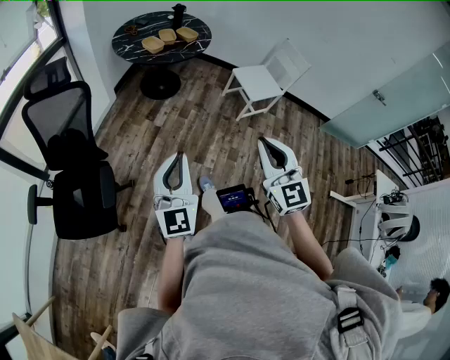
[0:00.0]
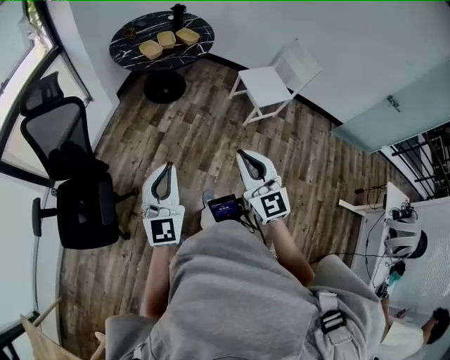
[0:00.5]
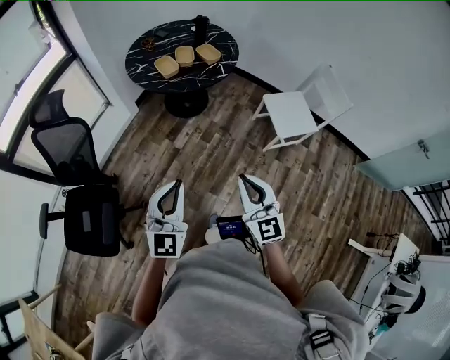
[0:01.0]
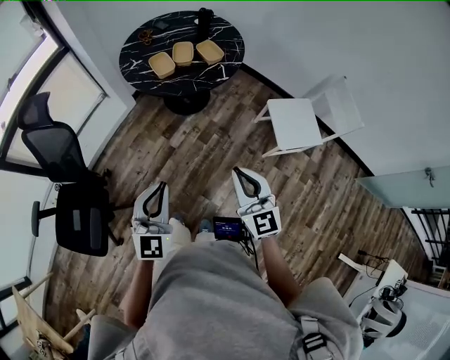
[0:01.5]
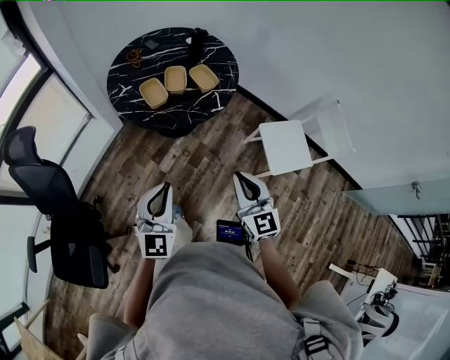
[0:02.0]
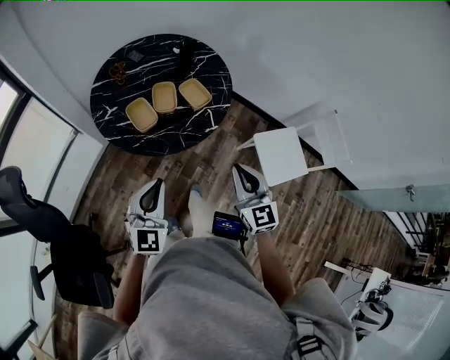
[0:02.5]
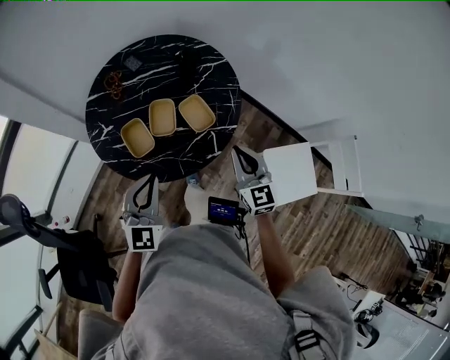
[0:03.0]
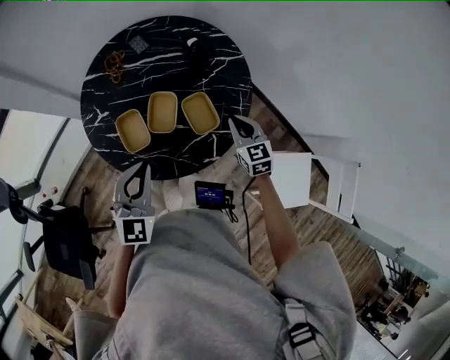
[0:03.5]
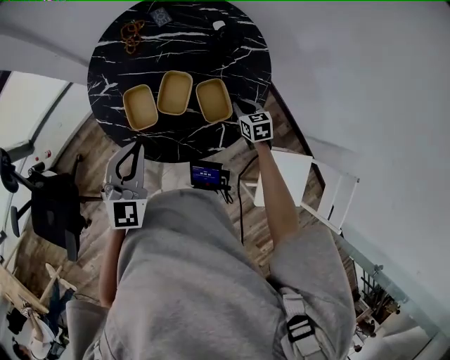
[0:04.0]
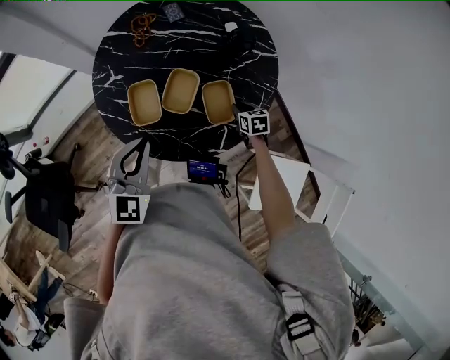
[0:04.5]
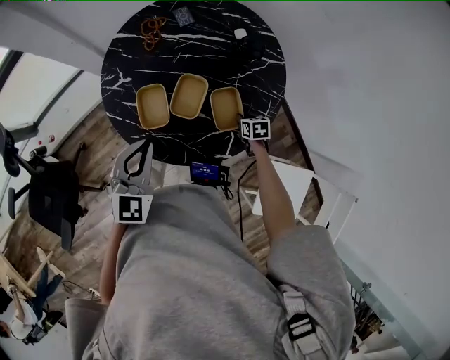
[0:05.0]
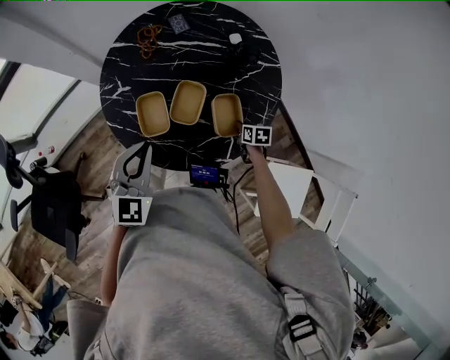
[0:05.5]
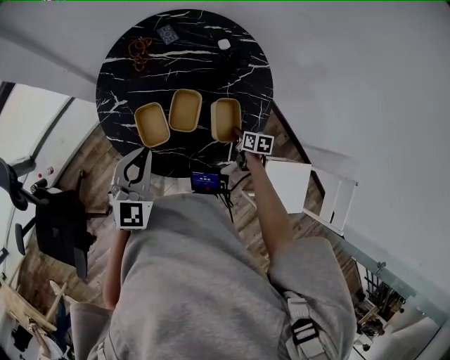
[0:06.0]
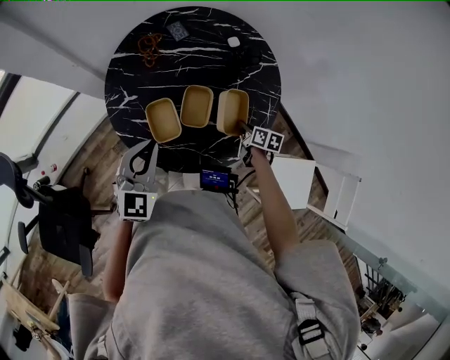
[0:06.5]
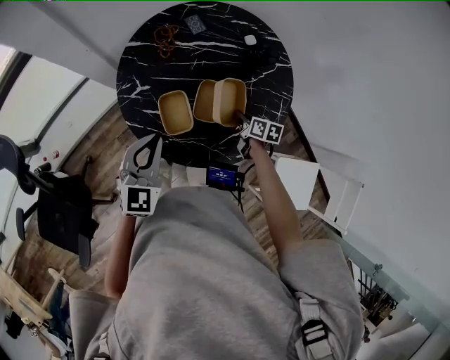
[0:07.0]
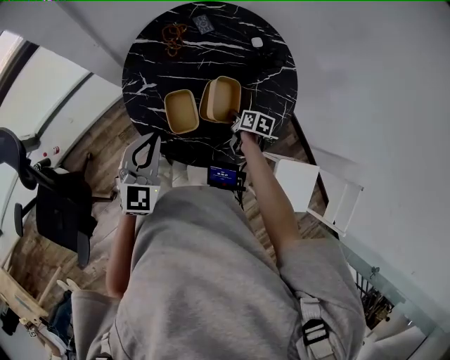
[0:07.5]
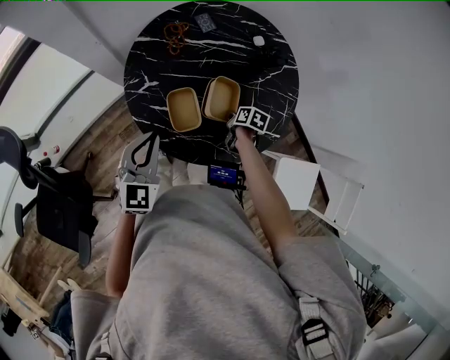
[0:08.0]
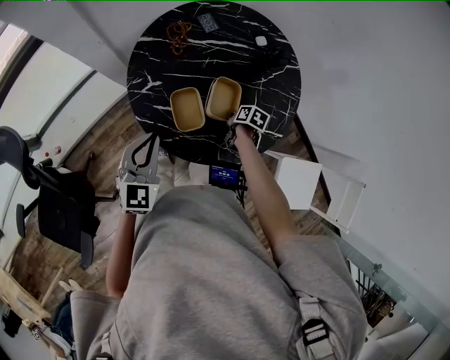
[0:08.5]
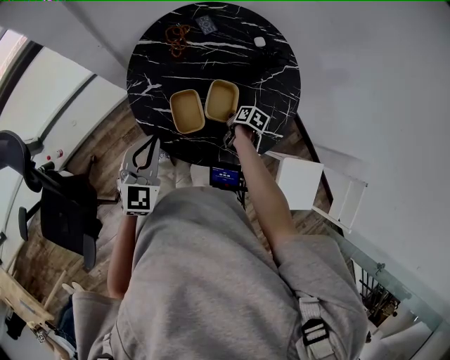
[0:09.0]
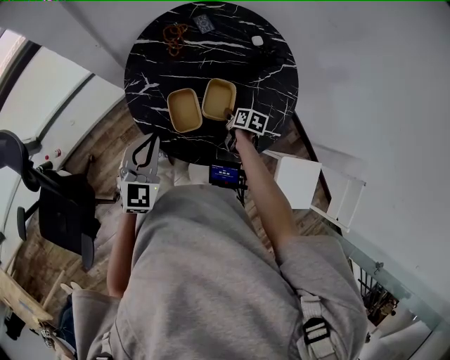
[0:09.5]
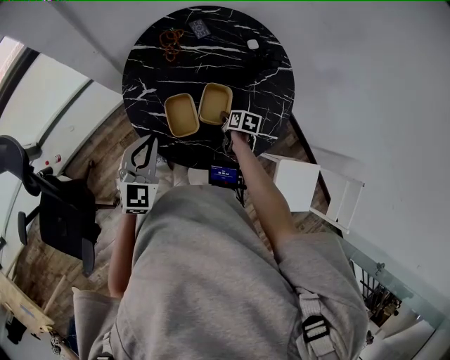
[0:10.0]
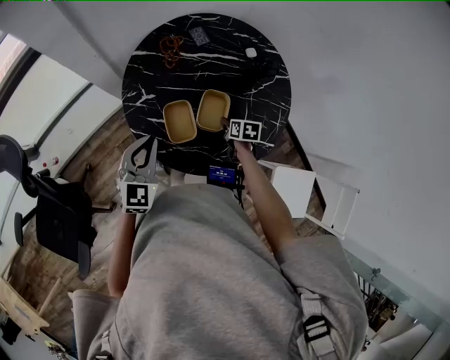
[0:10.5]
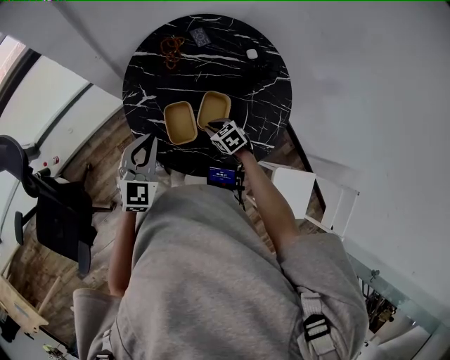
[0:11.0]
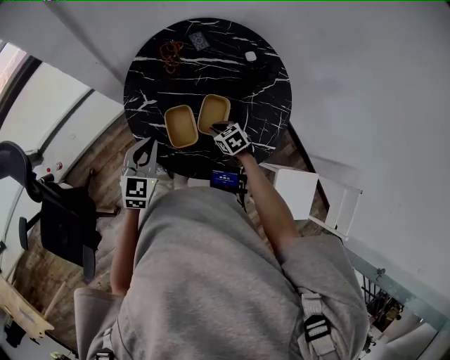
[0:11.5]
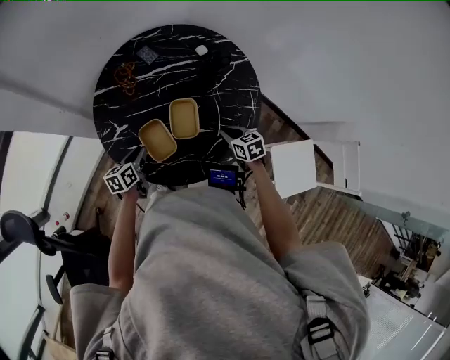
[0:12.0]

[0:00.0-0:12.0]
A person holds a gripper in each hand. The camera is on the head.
0:00.0 to 0:02.0: The pair of grippers is taken forward, some 50 cm.
0:02.0 to 0:04.0: The two grippers travel together, forward, some 50 cm. The left gripper rotates about 20 degrees. Meanwhile the right gripper heads downward, covering about 30 cm, and tilts its fingers approximately 40 degrees downward.
0:04.0 to 0:06.0: The left gripper changes place by roughly 5 cm, while the right gripper is displaced downward by some 5 cm, and rotates about 30 degrees.
0:06.0 to 0:08.0: The grippers both shift to the left by approximately 10 cm.
0:08.0 to 0:10.0: The right gripper opens its fingers.
0:10.0 to 0:12.0: The right gripper moves some 10 cm, and turns by approximately 30 degrees. The left gripper travels downward by about 20 cm, and twists some 40 degrees counterclockwise, seen from behind.

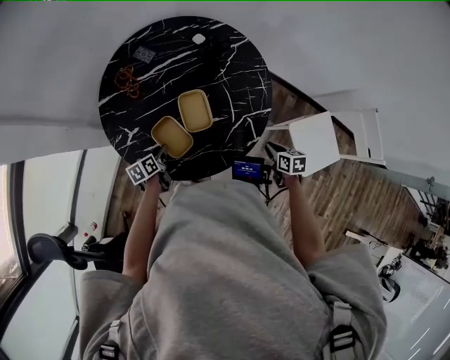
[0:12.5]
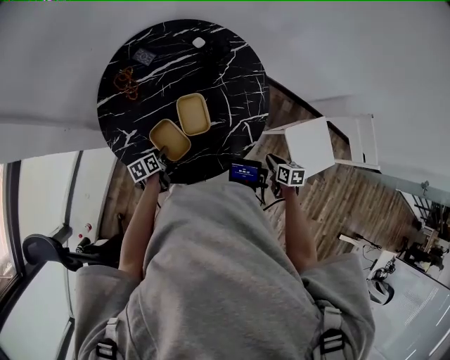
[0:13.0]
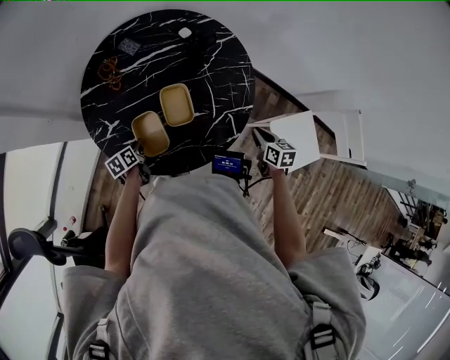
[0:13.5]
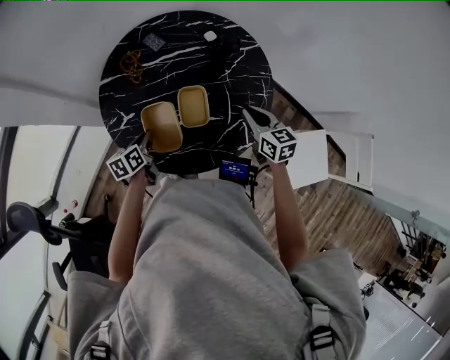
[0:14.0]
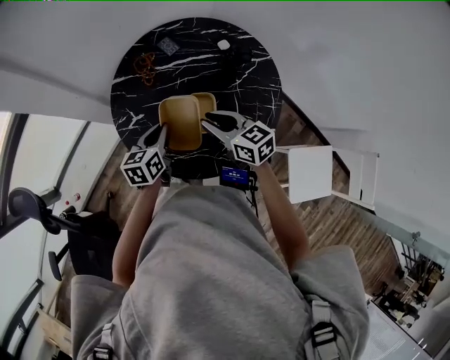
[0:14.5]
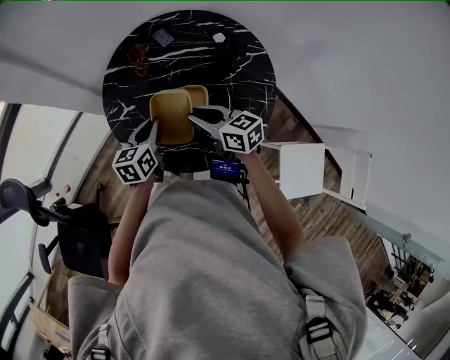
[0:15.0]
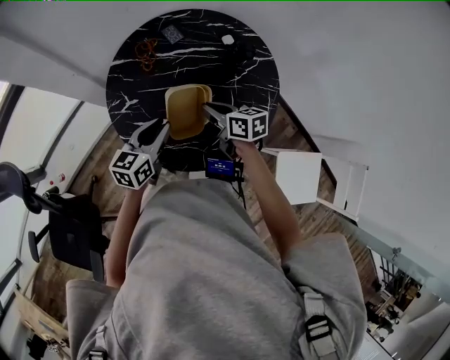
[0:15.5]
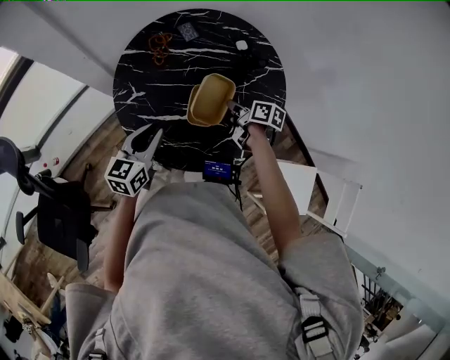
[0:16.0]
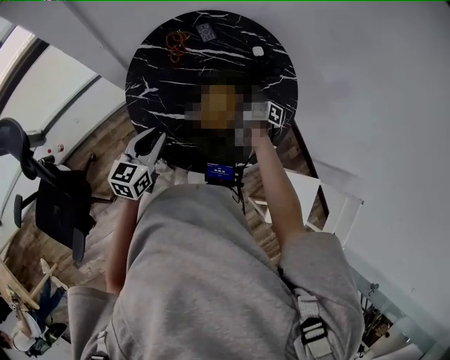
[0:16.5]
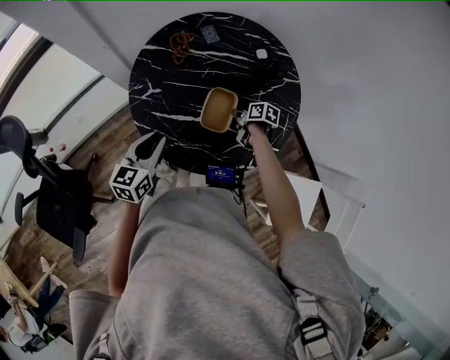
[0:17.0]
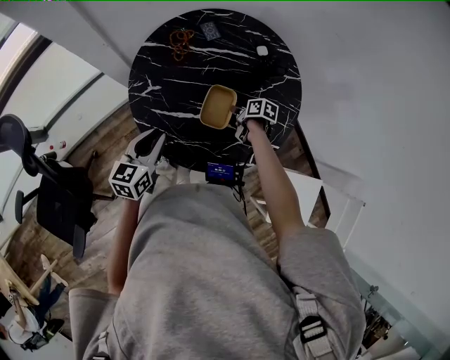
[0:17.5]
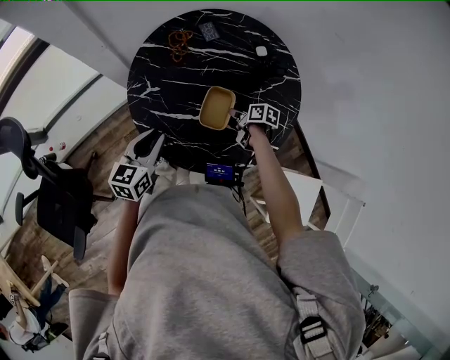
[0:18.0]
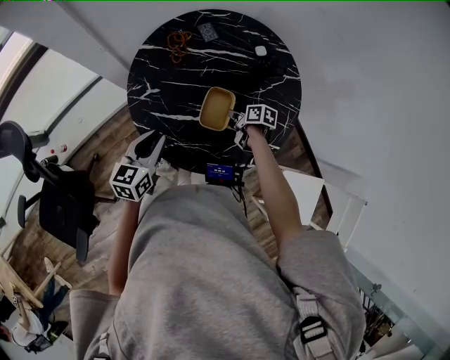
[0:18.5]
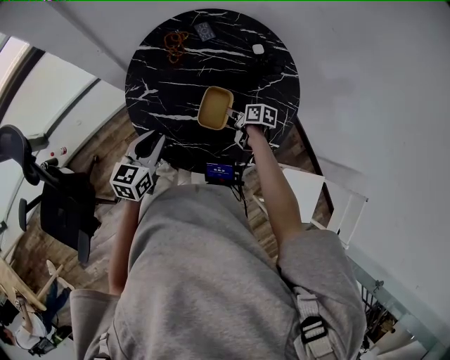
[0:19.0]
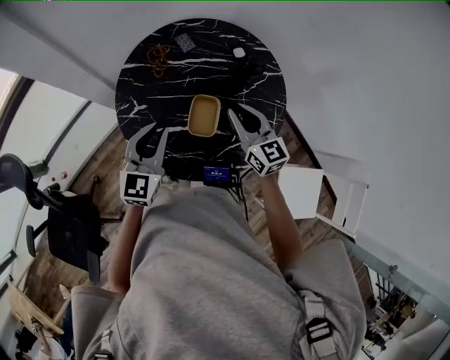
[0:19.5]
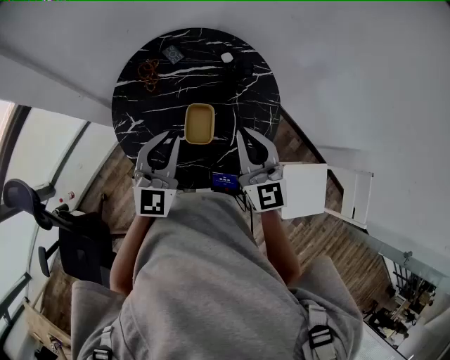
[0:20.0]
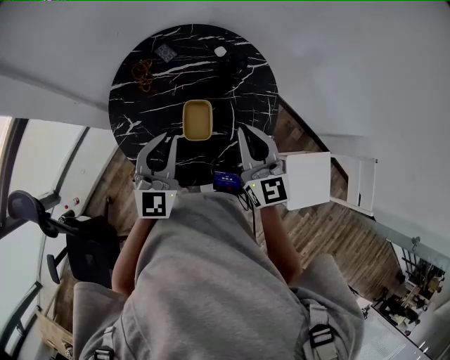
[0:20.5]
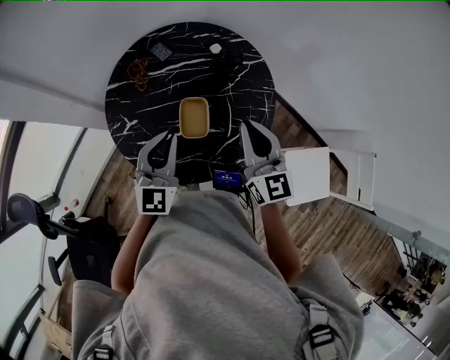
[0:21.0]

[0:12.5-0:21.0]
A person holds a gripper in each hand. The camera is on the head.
0:12.5 to 0:14.5: The left gripper shifts about 20 cm upward, changes its angle by about 30 degrees, and closes its fingers. The right gripper ends up some 35 cm from where it was, and tips its fingers upward by approximately 30 degrees.
0:14.5 to 0:16.5: The left gripper travels backward and to the left by roughly 10 cm; the right gripper goes roughly 25 cm downward and to the right, and rotates around the line of its fingers by some 40 degrees, clockwise from behind.
0:16.5 to 0:19.0: There are only small adjustments of the grippers.
0:19.0 to 0:21.0: The right gripper moves upward, about 35 cm, and angles its fingers upward, by some 40 degrees; the left gripper goes some 15 cm upward, and rotates some 40 degrees.

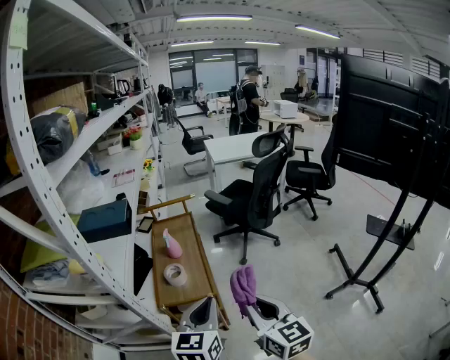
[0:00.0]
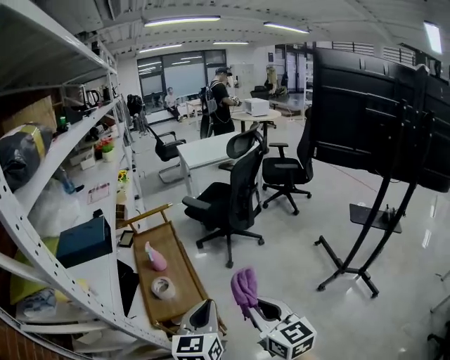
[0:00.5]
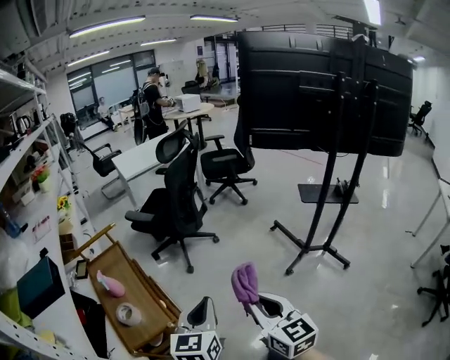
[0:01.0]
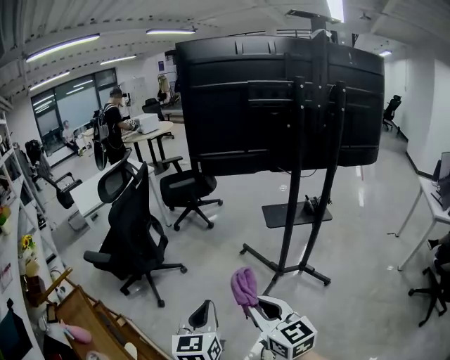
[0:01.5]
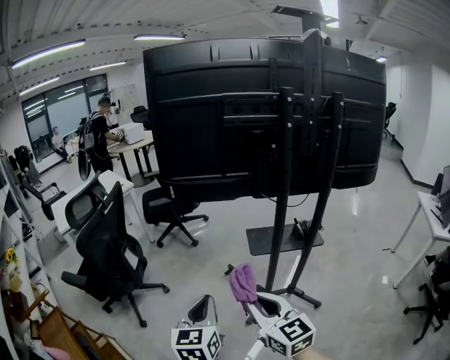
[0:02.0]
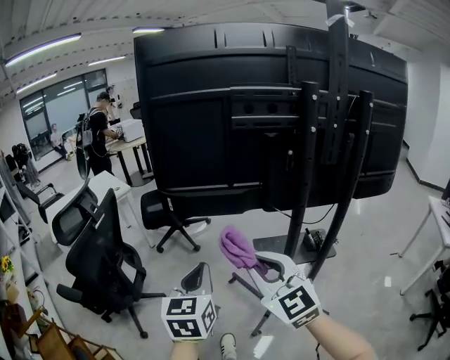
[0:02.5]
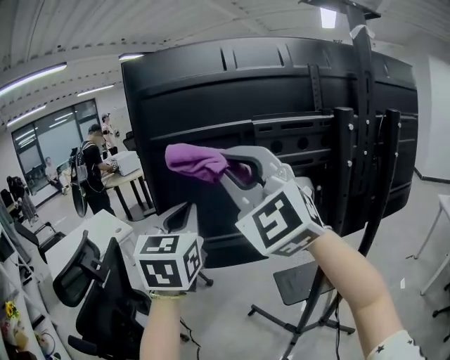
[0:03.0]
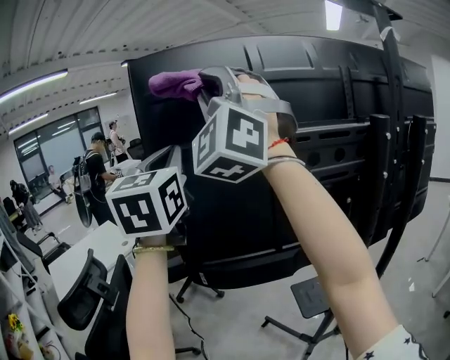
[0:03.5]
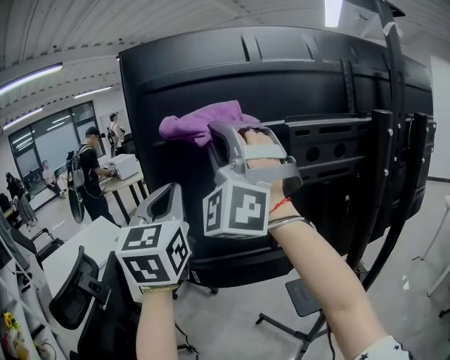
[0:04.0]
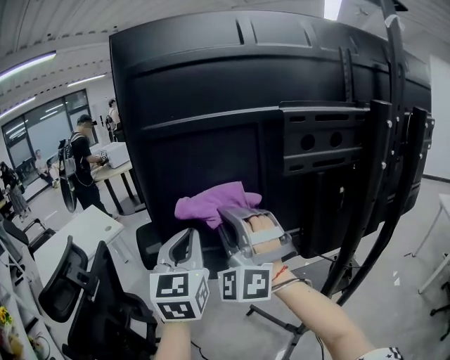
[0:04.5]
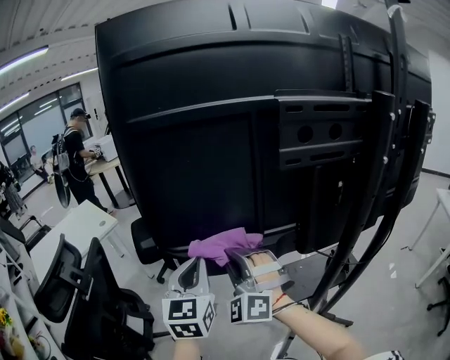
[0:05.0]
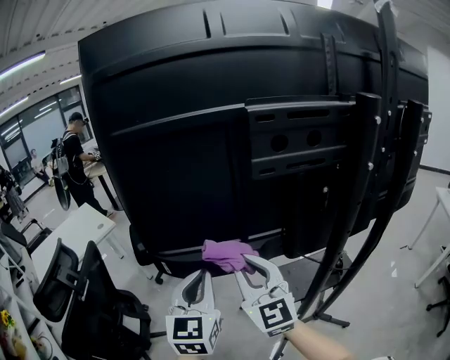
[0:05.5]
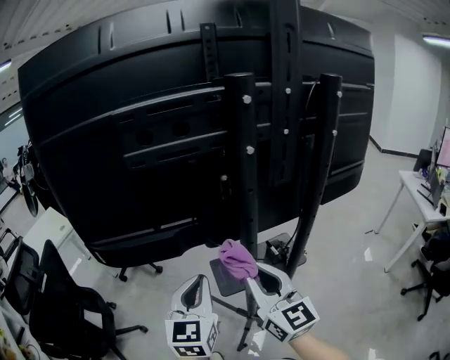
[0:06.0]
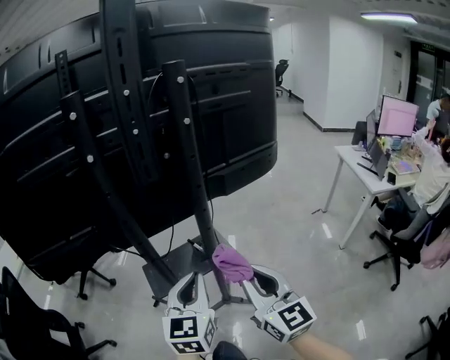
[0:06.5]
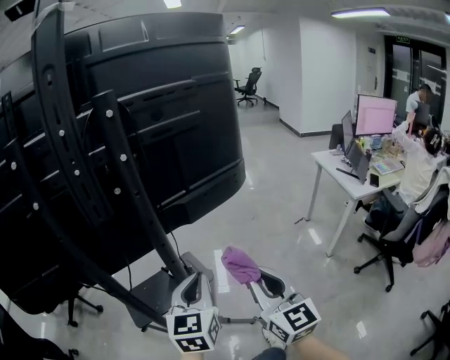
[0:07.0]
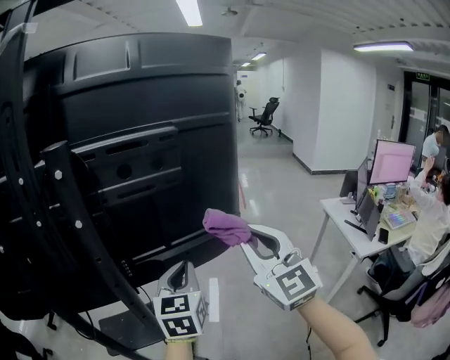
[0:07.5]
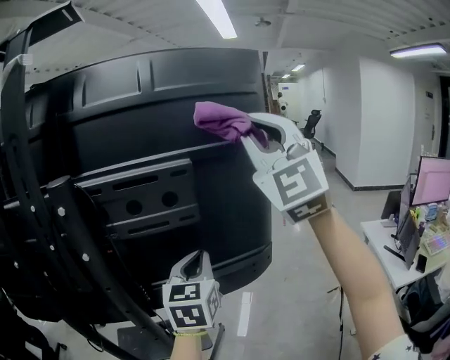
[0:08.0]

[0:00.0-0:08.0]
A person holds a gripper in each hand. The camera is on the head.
0:00.0 to 0:02.0: The two grippers travel together, some 60 cm. The right gripper rotates about 40 degrees. The left gripper swivels some 40 degrees.
0:02.0 to 0:04.0: Both grippers are carried forward, roughly 50 cm. Both grippers move upward, some 40 cm. The right gripper twists roughly 80 degrees counterclockwise, seen from behind, while the left gripper changes its angle by roughly 30 degrees.
0:04.0 to 0:06.0: The right gripper travels downward, to the right and backward by some 50 cm, and twists approximately 80 degrees clockwise, seen from behind, while the left gripper travels to the right, downward and backward by approximately 40 cm, and swivels approximately 20 degrees.
0:06.0 to 0:08.0: Both grippers are carried to the right and forward, some 60 cm. The right gripper shifts about 40 cm upward, and twists roughly 60 degrees counterclockwise, seen from behind.
